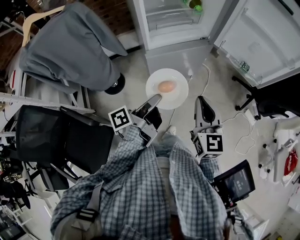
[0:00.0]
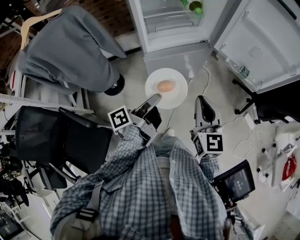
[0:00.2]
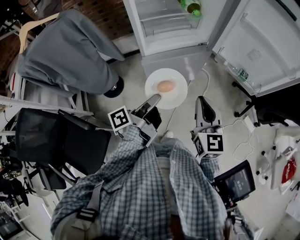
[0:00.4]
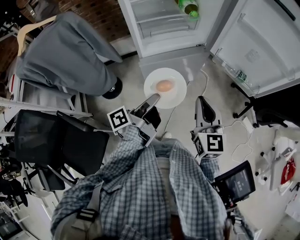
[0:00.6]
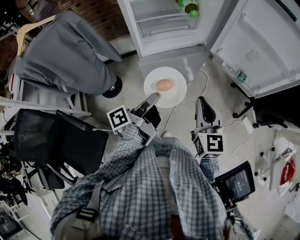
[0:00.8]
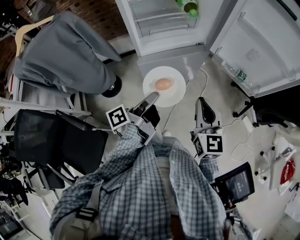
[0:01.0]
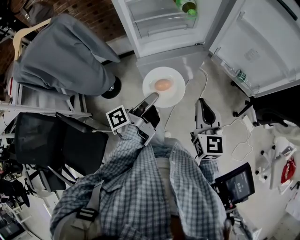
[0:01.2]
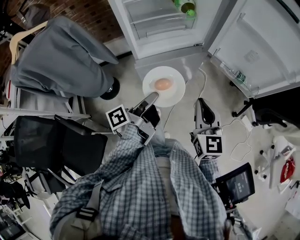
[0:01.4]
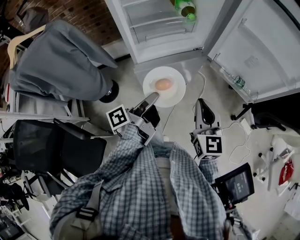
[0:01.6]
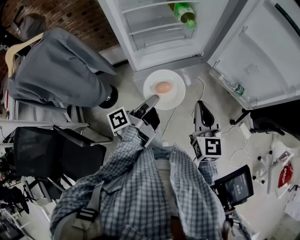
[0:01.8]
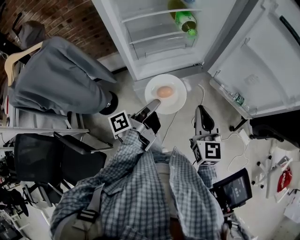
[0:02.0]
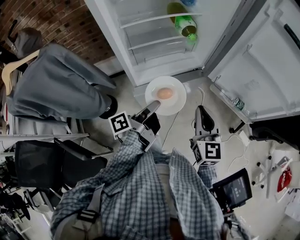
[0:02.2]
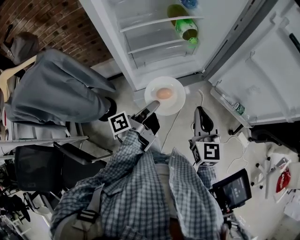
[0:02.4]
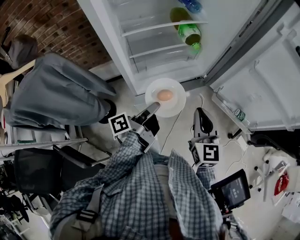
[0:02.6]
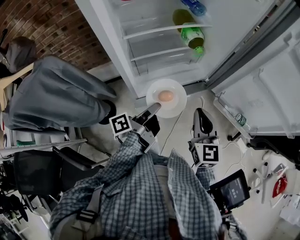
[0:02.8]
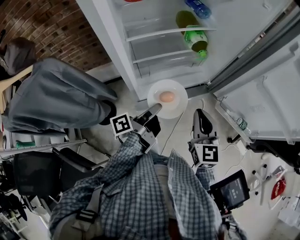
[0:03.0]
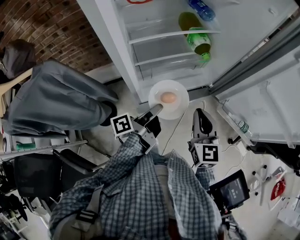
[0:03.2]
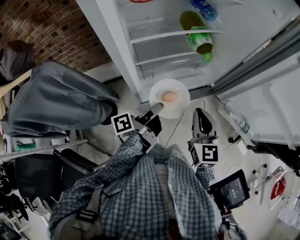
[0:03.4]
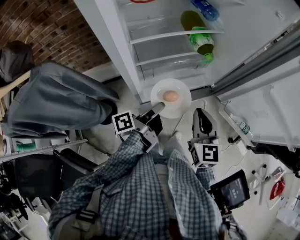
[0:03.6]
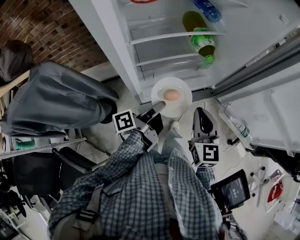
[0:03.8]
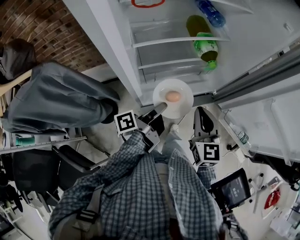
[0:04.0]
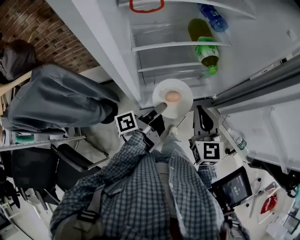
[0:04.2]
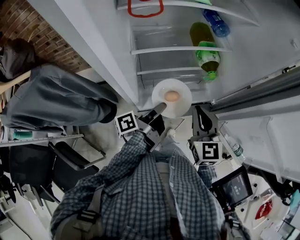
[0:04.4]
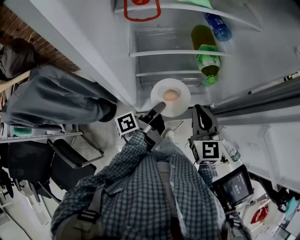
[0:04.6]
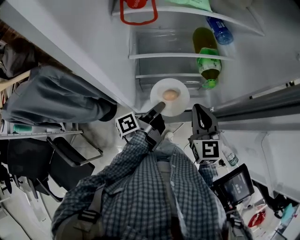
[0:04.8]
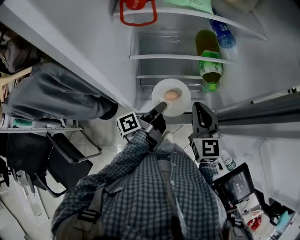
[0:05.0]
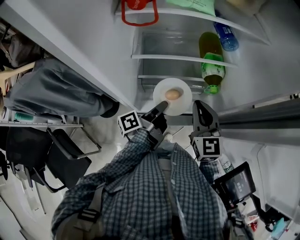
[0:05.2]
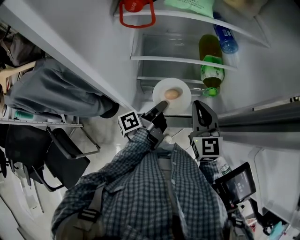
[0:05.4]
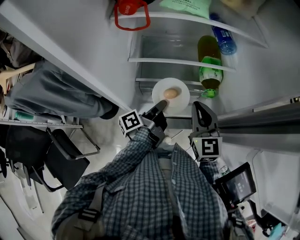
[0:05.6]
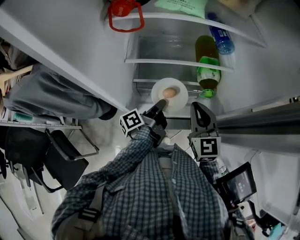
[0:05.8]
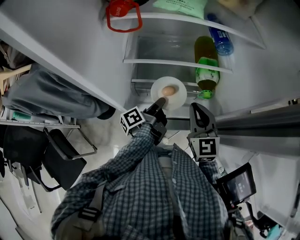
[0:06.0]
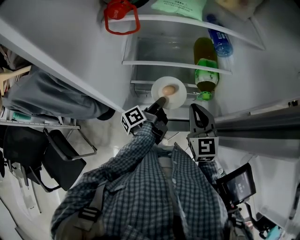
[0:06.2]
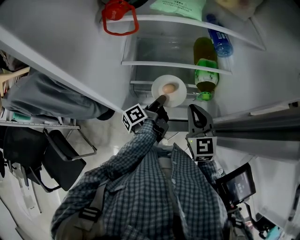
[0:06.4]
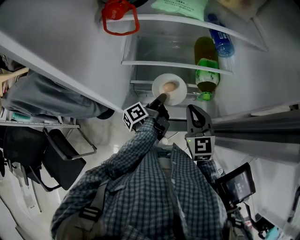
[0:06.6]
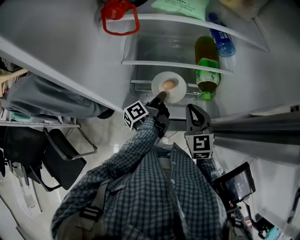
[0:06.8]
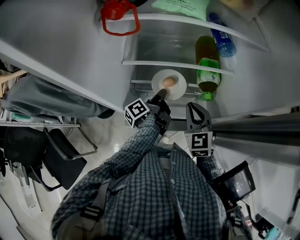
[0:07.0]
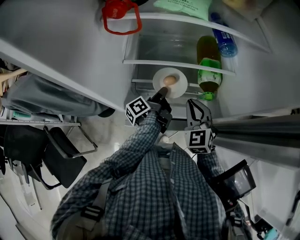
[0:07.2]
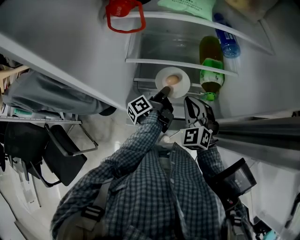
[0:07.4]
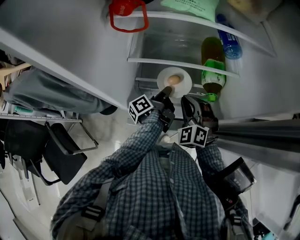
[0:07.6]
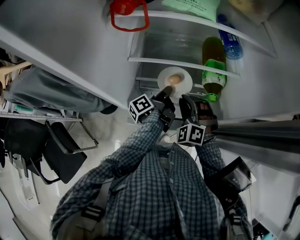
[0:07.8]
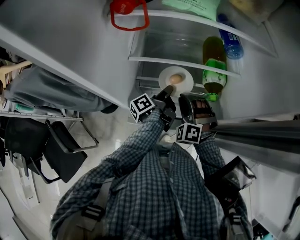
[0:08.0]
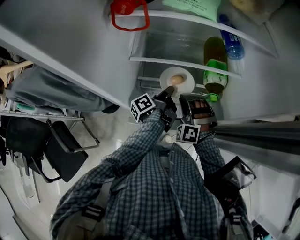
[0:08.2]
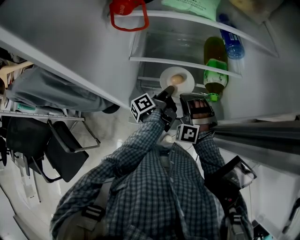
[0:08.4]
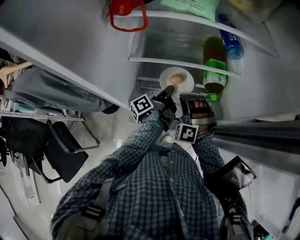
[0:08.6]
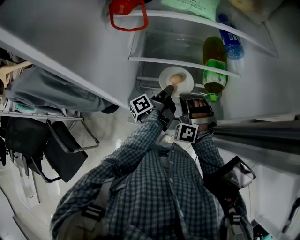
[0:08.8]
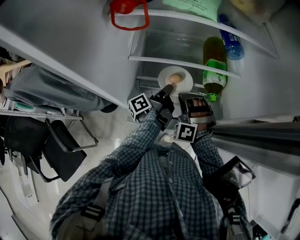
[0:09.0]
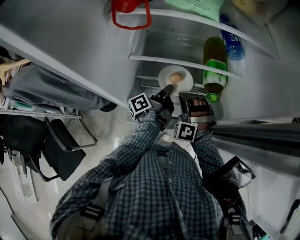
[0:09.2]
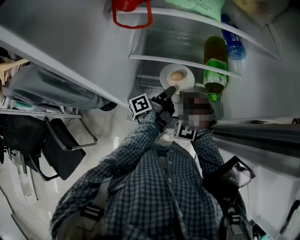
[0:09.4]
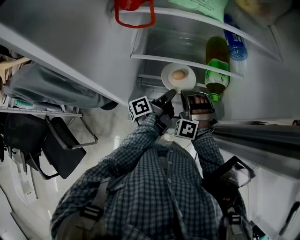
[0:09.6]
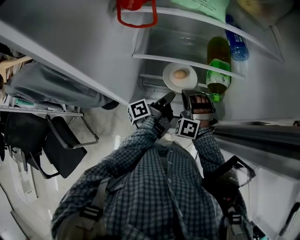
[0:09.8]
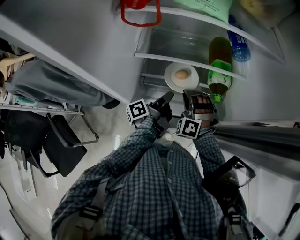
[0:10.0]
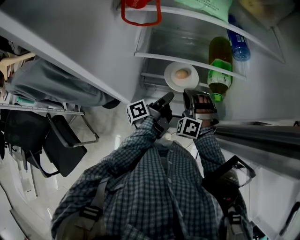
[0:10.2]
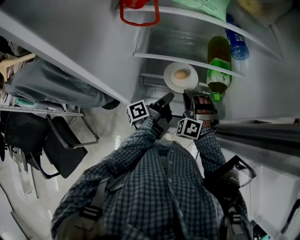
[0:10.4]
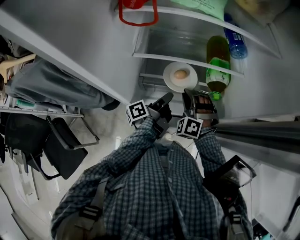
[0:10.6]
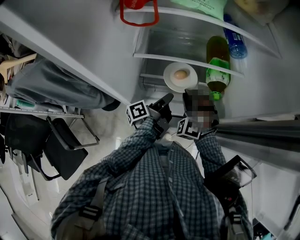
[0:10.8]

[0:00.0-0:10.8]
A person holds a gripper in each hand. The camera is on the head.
0:00.0 to 0:01.6: The right gripper ends up about 10 cm from where it was.
0:01.6 to 0:03.0: The right gripper shifts by some 20 cm.
0:03.0 to 0:04.6: The right gripper changes place by about 15 cm.
0:04.6 to 0:06.2: The right gripper ends up roughly 5 cm from where it was.
0:06.2 to 0:07.8: The right gripper moves downward, some 10 cm, and twists roughly 50 degrees counterclockwise, seen from behind.

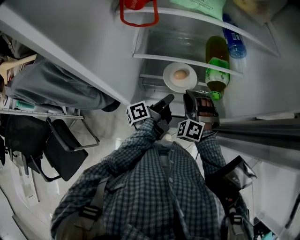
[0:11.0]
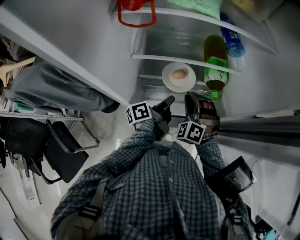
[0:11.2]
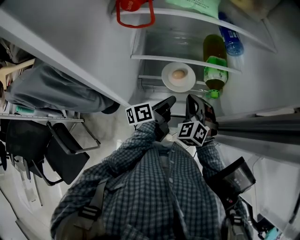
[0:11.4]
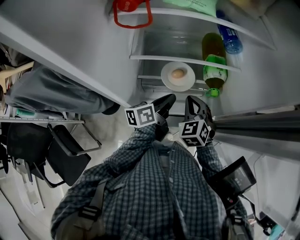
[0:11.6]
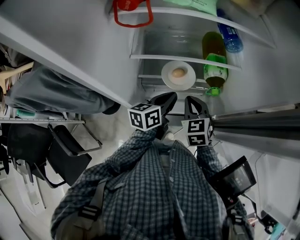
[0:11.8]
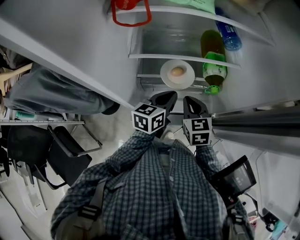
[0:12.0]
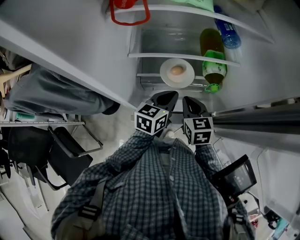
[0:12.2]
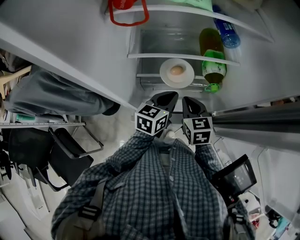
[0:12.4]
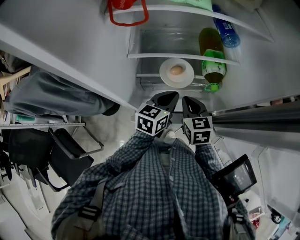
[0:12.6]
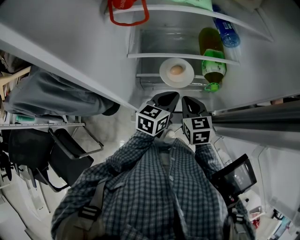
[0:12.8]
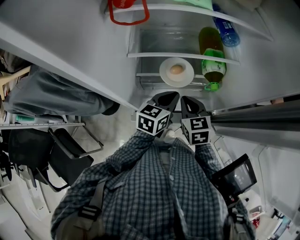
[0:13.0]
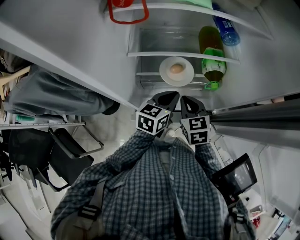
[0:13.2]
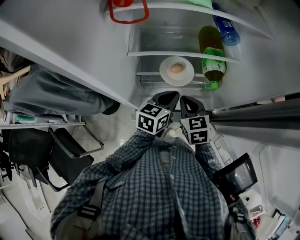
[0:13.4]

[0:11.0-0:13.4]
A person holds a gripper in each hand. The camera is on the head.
0:11.0 to 0:12.2: The right gripper rolls clockwise, seen from behind, by some 70 degrees.

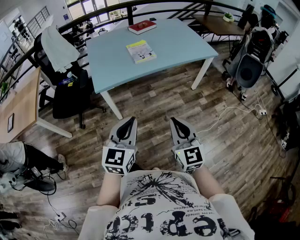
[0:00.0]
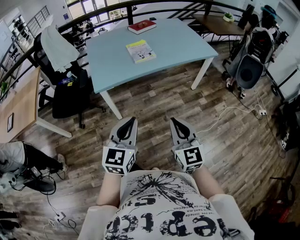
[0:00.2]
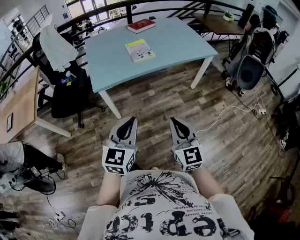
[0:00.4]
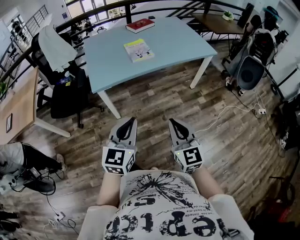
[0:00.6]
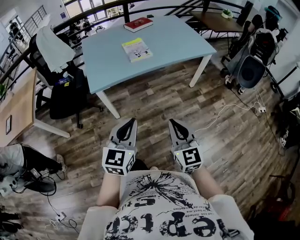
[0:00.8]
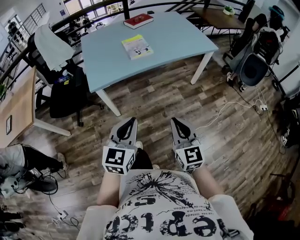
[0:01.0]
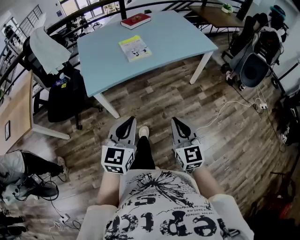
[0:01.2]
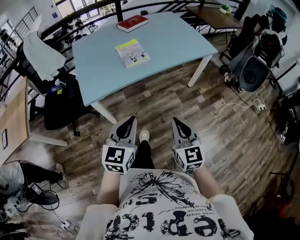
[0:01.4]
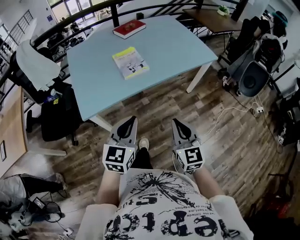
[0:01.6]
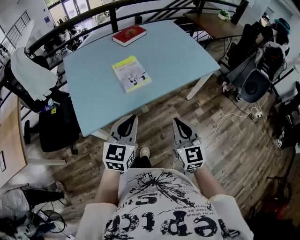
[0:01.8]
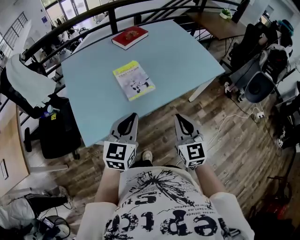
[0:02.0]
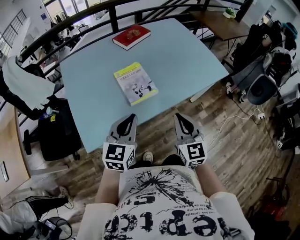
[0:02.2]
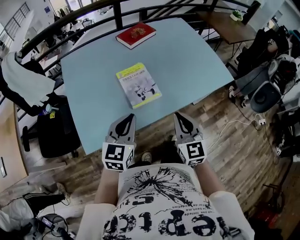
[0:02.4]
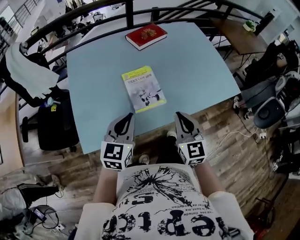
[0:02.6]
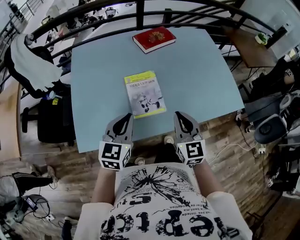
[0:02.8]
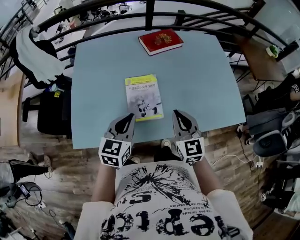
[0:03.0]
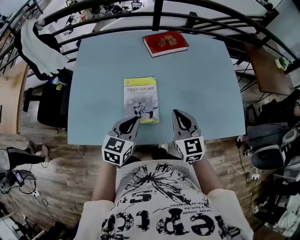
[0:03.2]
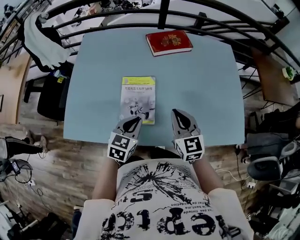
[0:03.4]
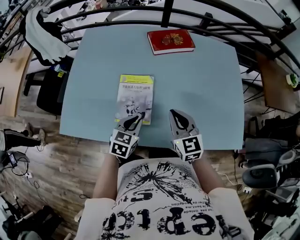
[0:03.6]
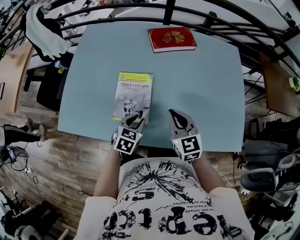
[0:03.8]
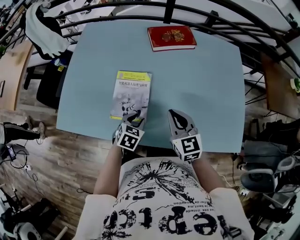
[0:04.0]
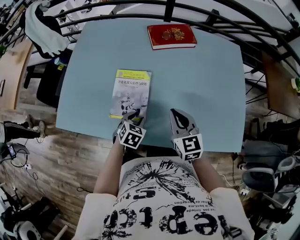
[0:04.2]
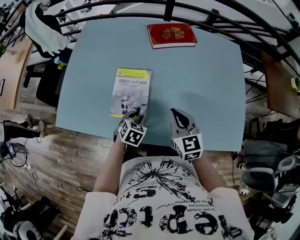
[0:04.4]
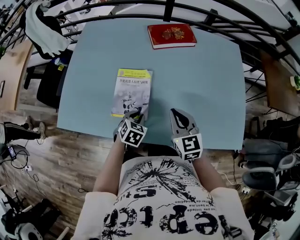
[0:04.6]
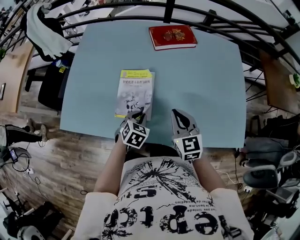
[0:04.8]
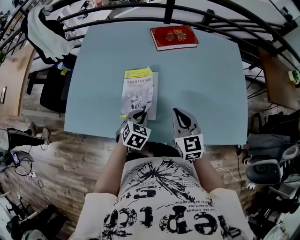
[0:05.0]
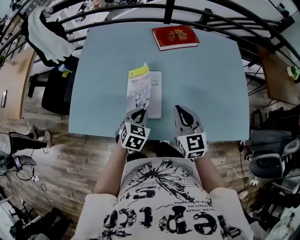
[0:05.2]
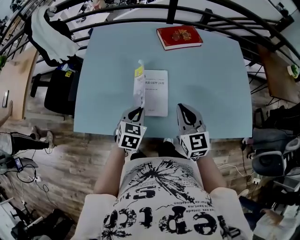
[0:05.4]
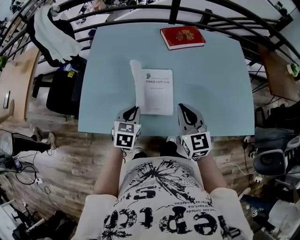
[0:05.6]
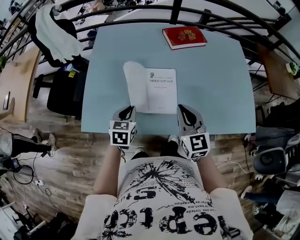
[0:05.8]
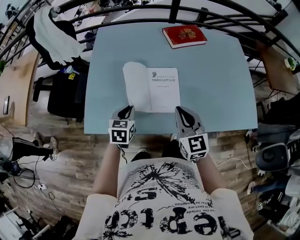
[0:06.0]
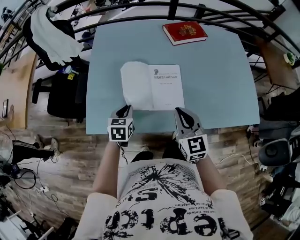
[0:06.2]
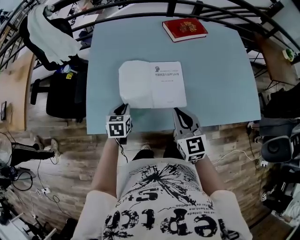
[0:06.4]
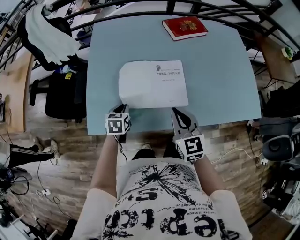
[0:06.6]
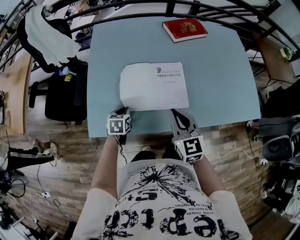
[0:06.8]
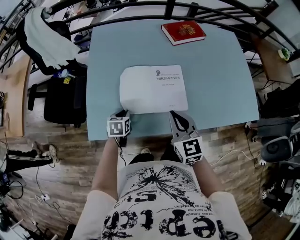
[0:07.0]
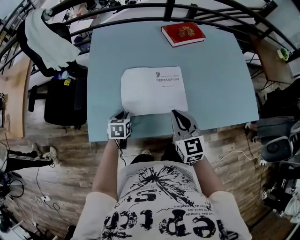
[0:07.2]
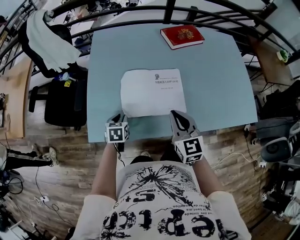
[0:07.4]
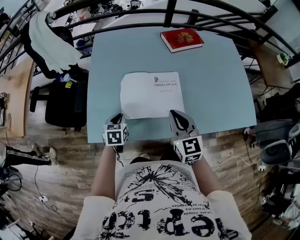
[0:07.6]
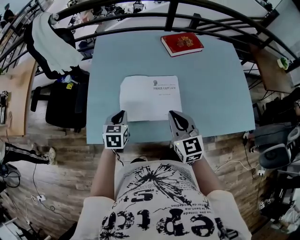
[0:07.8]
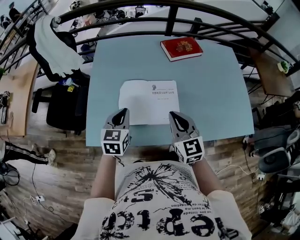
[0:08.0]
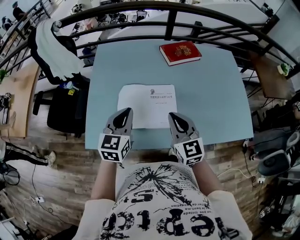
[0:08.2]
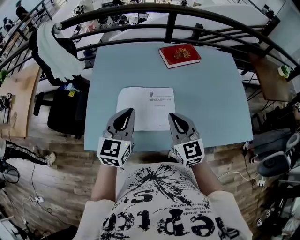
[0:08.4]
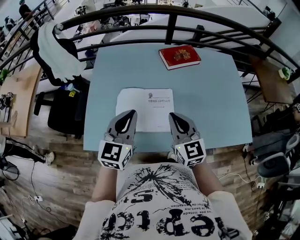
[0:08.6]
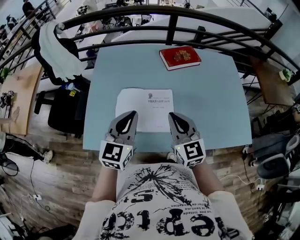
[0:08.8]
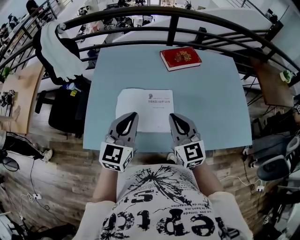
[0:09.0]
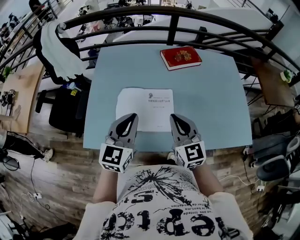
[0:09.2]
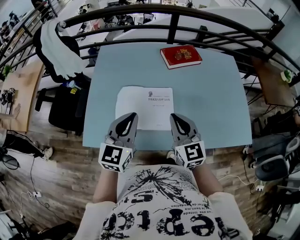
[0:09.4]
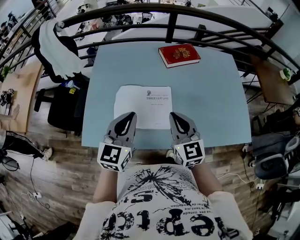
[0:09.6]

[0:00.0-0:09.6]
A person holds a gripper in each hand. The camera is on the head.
0:00.0 to 0:01.6: The grippers both shift forward by some 20 cm.
0:01.6 to 0:03.2: Both grippers are carried forward, roughly 40 cm. The left gripper swivels some 20 degrees. Meanwhile the right gripper rotates roughly 30 degrees.
0:03.2 to 0:04.8: The left gripper goes approximately 15 cm downward and to the right, and turns by about 30 degrees, while the right gripper travels downward by roughly 5 cm.
0:04.8 to 0:06.4: Both grippers travel together to the left, about 25 cm. The left gripper swivels about 20 degrees.
0:06.4 to 0:08.0: The left gripper shifts approximately 15 cm upward. The right gripper shifts by about 5 cm.
0:08.0 to 0:09.6: The right gripper moves some 5 cm. Meanwhile the left gripper heads upward and to the right, covering roughly 15 cm.

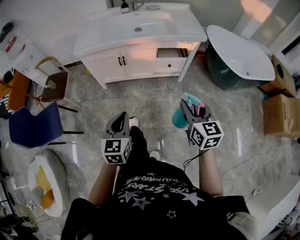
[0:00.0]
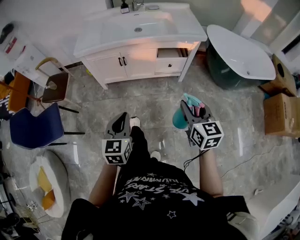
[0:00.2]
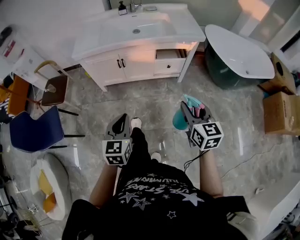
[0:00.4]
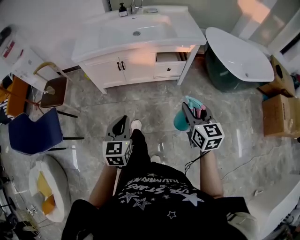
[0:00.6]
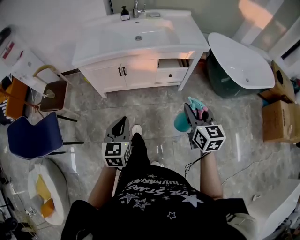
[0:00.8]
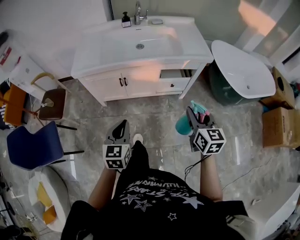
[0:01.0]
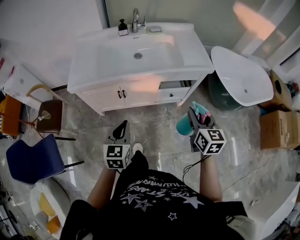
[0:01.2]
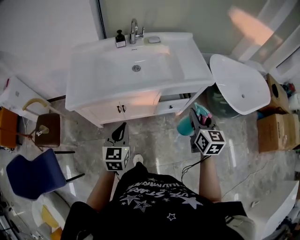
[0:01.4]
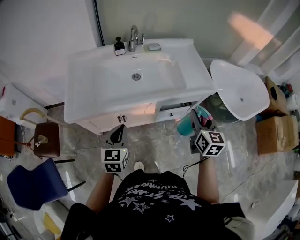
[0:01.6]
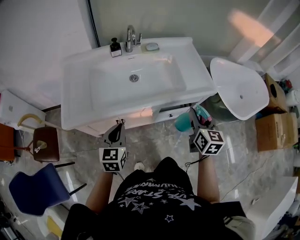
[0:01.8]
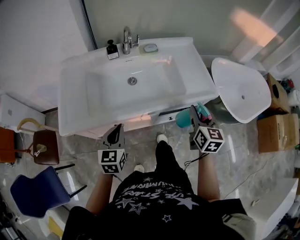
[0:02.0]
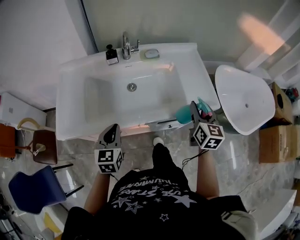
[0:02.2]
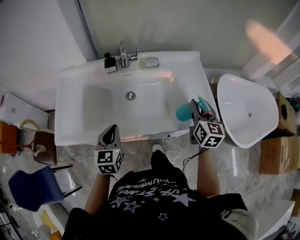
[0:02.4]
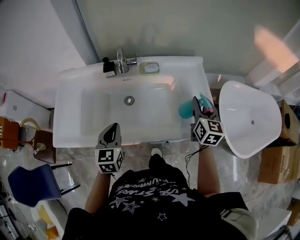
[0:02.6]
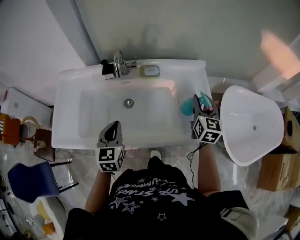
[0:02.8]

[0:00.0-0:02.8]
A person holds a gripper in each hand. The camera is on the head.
0:00.0 to 0:01.4: Both grippers travel together forward, about 35 cm.
0:01.4 to 0:02.8: Both grippers move forward, about 40 cm.
